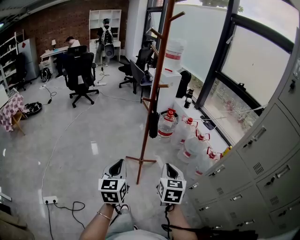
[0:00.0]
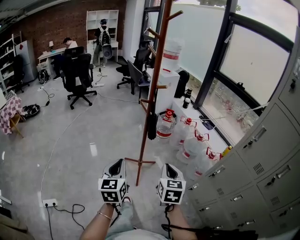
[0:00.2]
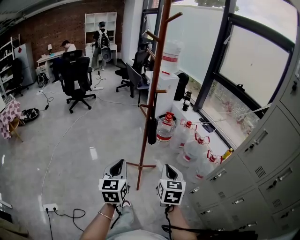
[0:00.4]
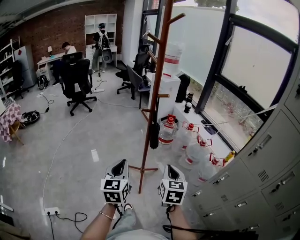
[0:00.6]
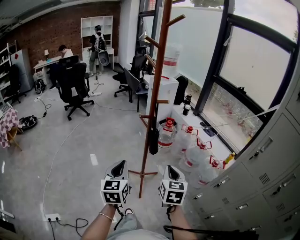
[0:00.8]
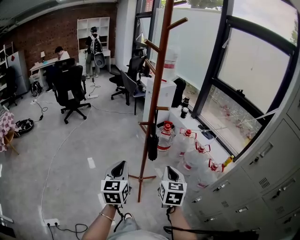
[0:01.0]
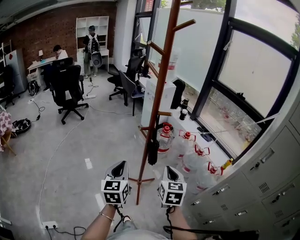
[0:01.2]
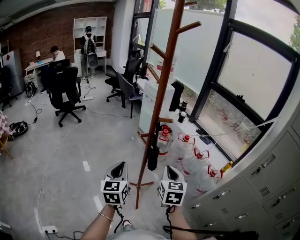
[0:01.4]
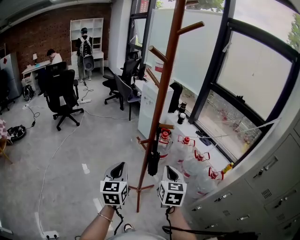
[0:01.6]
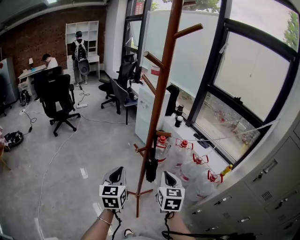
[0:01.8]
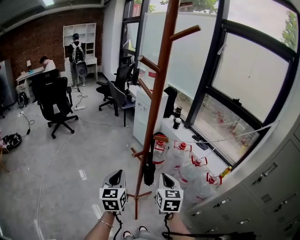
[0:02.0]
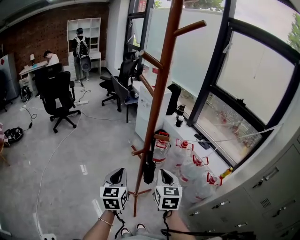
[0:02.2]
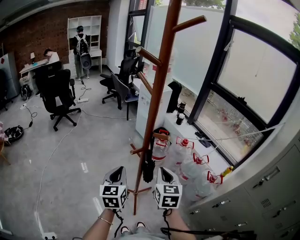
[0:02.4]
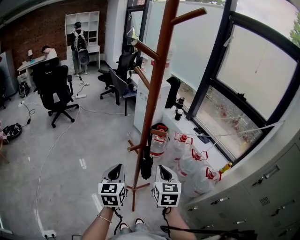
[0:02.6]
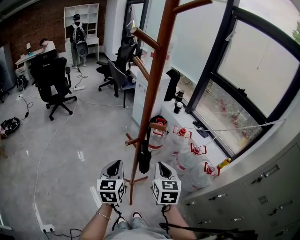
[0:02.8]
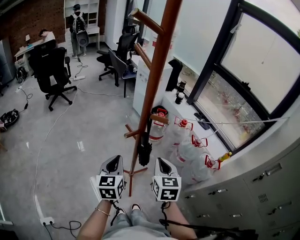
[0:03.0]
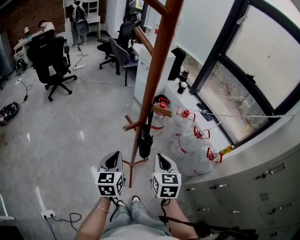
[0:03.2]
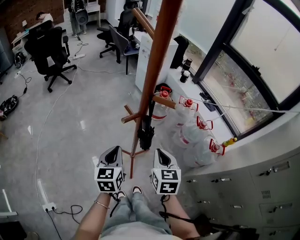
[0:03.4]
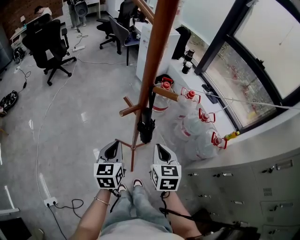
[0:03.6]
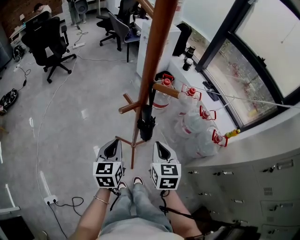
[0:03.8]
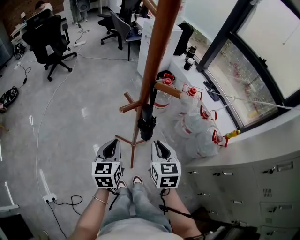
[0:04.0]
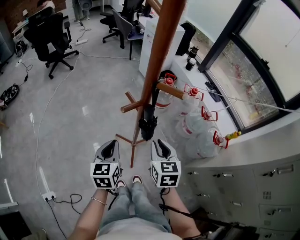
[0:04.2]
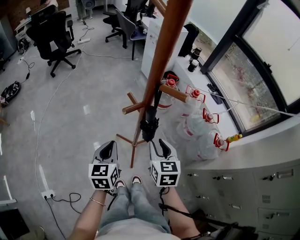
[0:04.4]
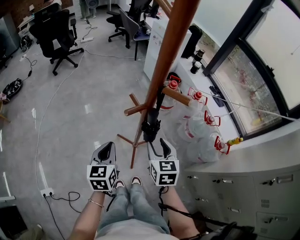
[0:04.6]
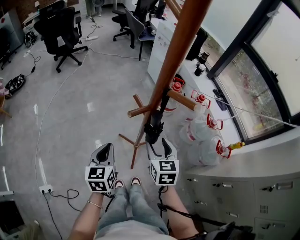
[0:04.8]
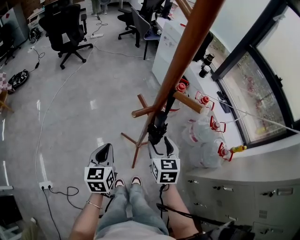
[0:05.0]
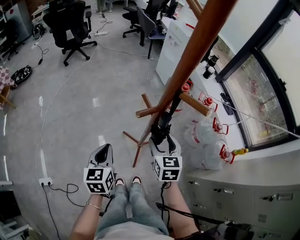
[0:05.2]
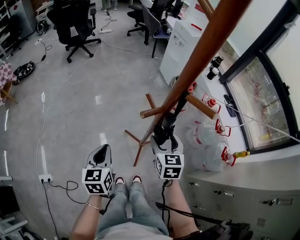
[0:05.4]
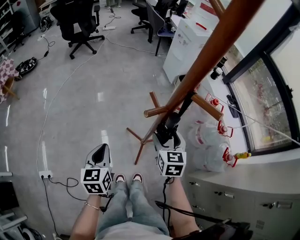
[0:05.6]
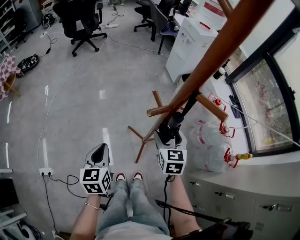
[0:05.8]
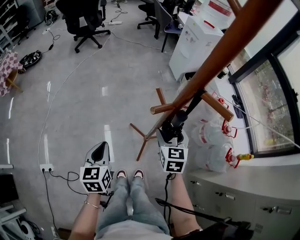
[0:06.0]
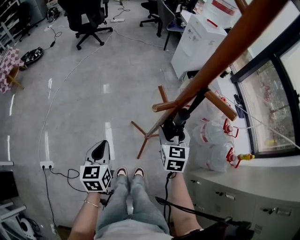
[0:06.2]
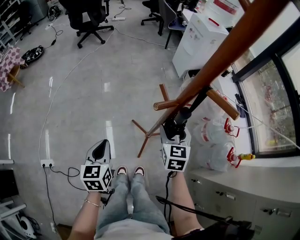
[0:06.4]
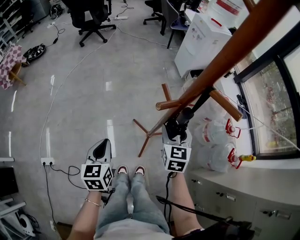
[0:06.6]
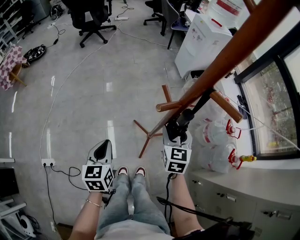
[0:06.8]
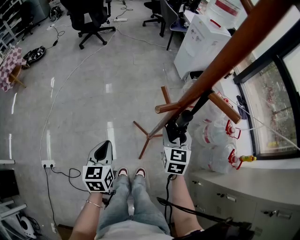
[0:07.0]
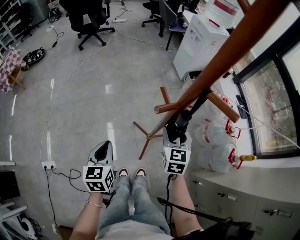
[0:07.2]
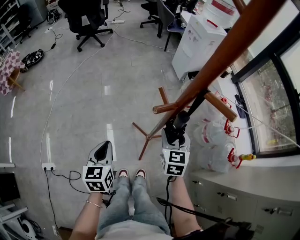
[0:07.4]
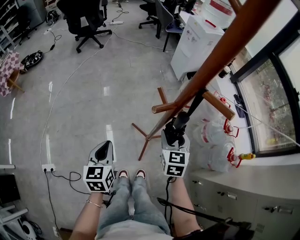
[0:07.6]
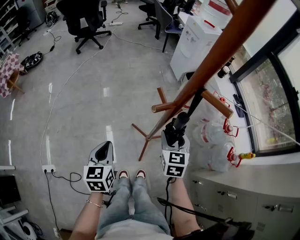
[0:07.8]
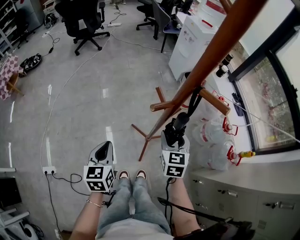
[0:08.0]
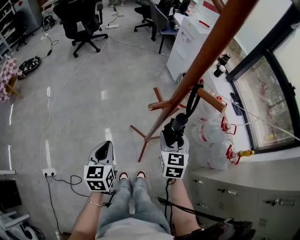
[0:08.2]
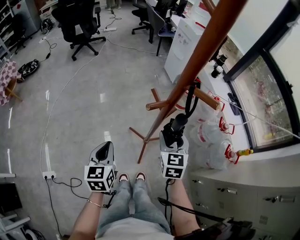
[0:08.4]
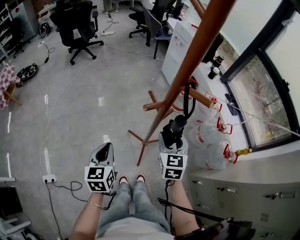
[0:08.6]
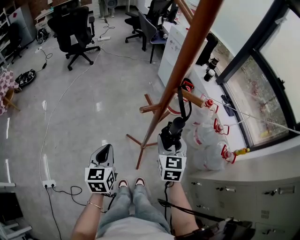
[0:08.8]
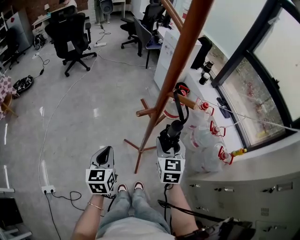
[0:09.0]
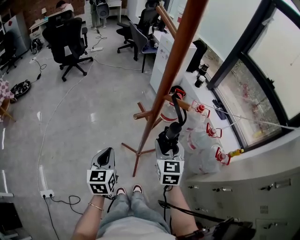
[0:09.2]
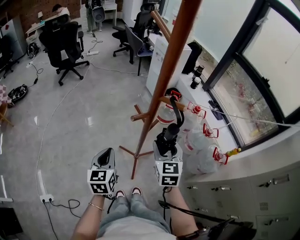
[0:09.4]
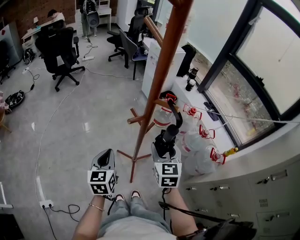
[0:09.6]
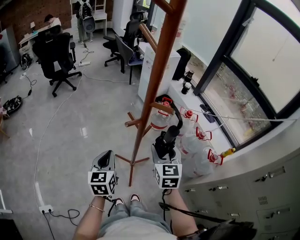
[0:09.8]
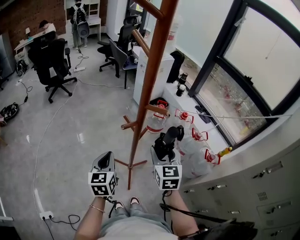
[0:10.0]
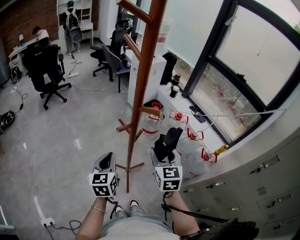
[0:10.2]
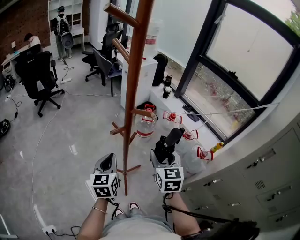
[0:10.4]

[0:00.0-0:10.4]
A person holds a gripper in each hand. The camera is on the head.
0:00.0 to 0:01.4: The two grippers go approximately 25 cm forward.
0:01.4 to 0:03.0: The left gripper goes some 10 cm forward and downward. Meanwhile the right gripper is displaced forward by approximately 10 cm.
0:03.0 to 0:04.4: The two grippers go approximately 10 cm downward.
0:04.4 to 0:06.0: The left gripper travels to the left by approximately 10 cm, while the right gripper is displaced forward and downward by approximately 10 cm, and opens its fingers.
0:06.0 to 0:07.4: Both grippers stay about where they are.
0:07.4 to 0:09.0: The grippers both shift upward by some 5 cm.
0:09.0 to 0:10.4: The right gripper travels upward and to the right by about 10 cm. The left gripper is displaced to the right and upward by some 10 cm.

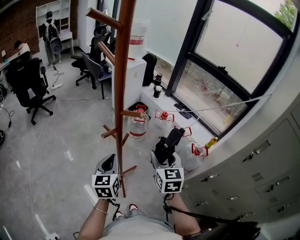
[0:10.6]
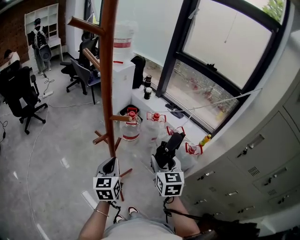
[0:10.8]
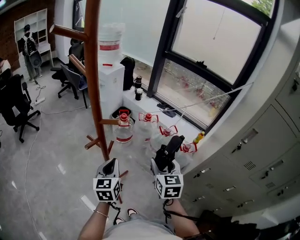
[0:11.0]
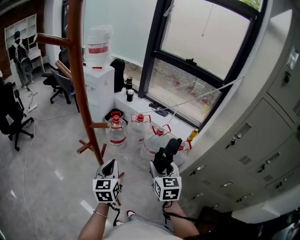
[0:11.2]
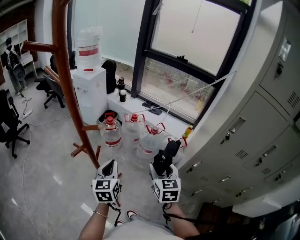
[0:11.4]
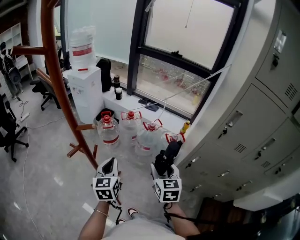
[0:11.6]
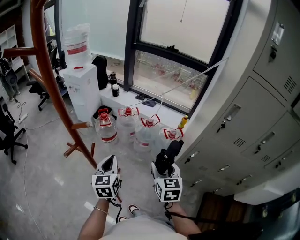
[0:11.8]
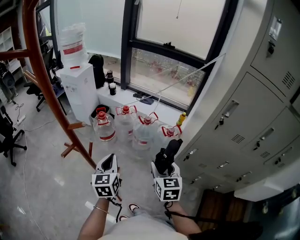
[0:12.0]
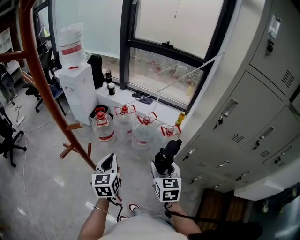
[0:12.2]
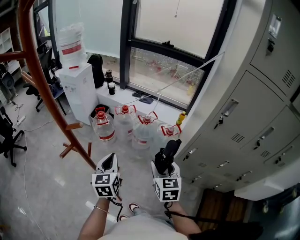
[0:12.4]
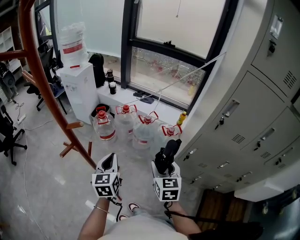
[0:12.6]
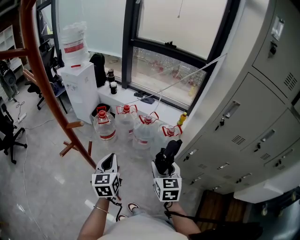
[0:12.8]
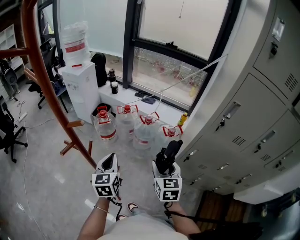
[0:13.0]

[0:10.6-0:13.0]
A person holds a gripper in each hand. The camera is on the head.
0:10.6 to 0:11.8: The two grippers go some 15 cm to the right. The left gripper rotates approximately 20 degrees. Meanwhile the right gripper changes its angle by about 30 degrees.
0:11.8 to 0:13.0: The grippers make only small movements.

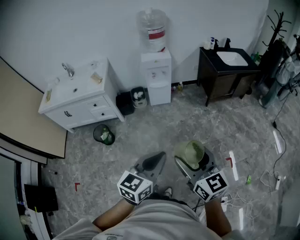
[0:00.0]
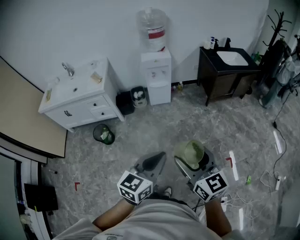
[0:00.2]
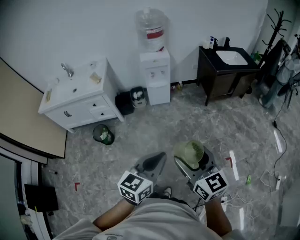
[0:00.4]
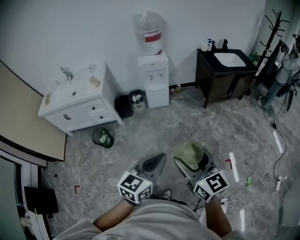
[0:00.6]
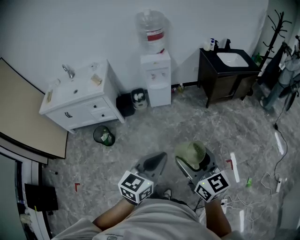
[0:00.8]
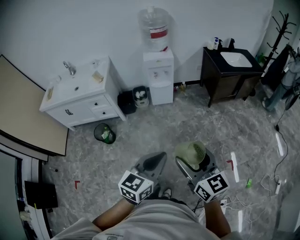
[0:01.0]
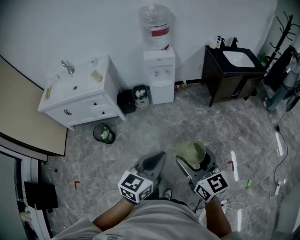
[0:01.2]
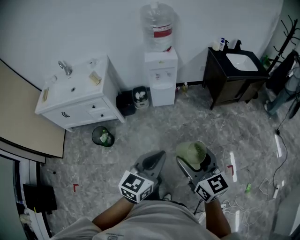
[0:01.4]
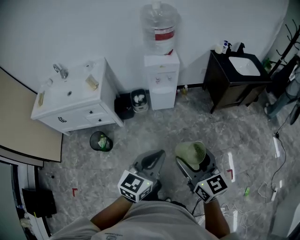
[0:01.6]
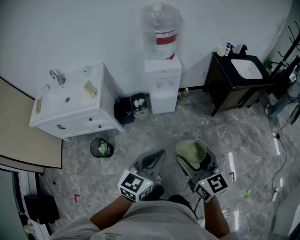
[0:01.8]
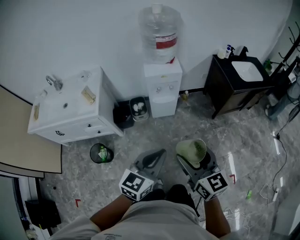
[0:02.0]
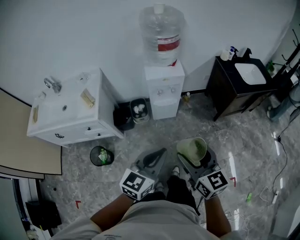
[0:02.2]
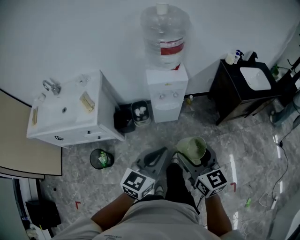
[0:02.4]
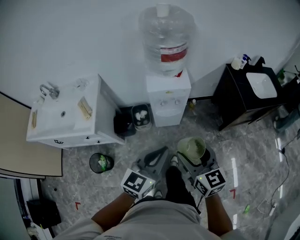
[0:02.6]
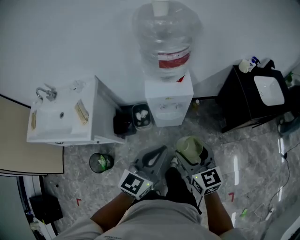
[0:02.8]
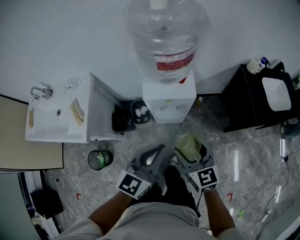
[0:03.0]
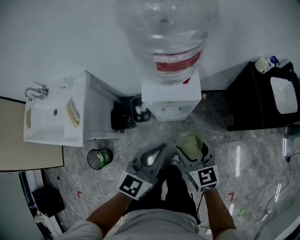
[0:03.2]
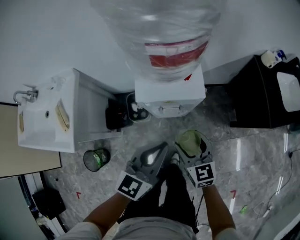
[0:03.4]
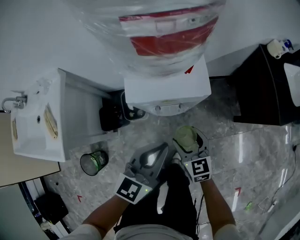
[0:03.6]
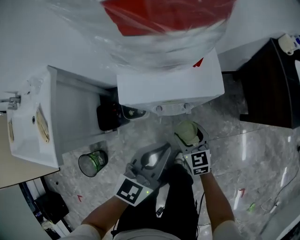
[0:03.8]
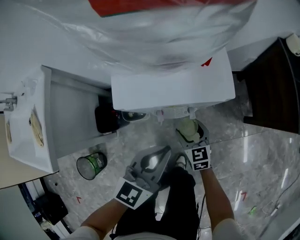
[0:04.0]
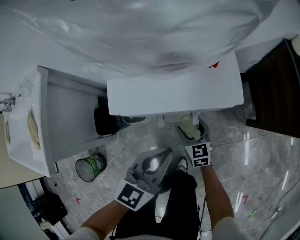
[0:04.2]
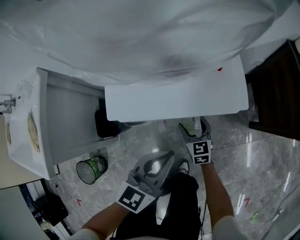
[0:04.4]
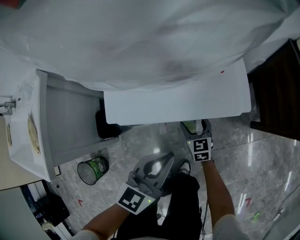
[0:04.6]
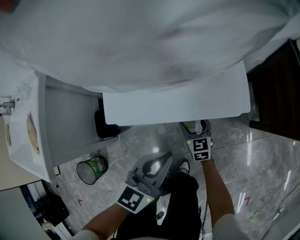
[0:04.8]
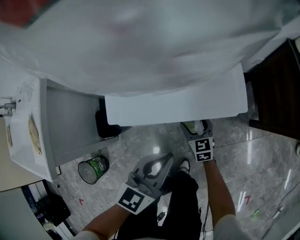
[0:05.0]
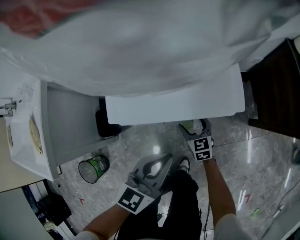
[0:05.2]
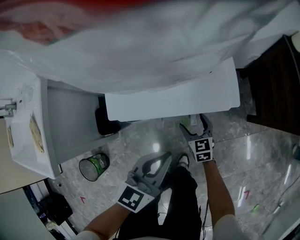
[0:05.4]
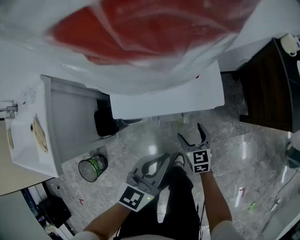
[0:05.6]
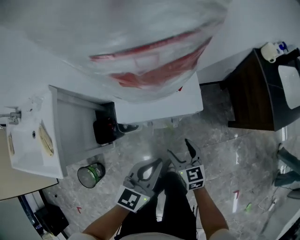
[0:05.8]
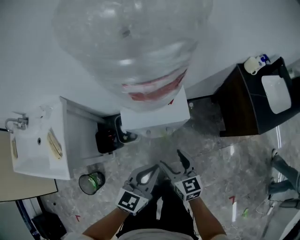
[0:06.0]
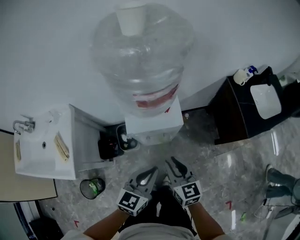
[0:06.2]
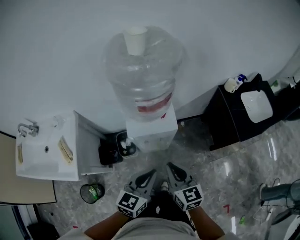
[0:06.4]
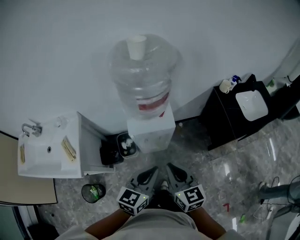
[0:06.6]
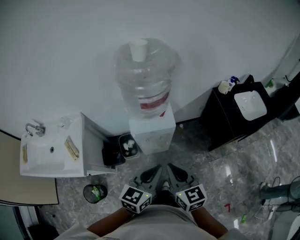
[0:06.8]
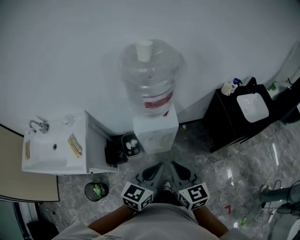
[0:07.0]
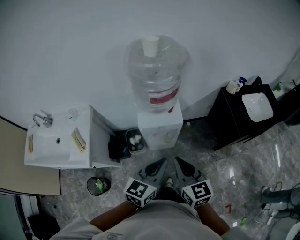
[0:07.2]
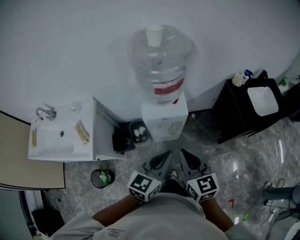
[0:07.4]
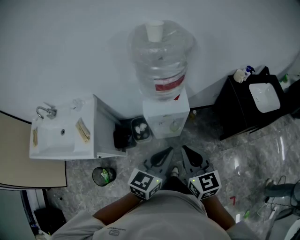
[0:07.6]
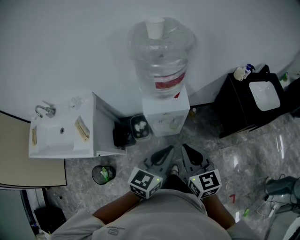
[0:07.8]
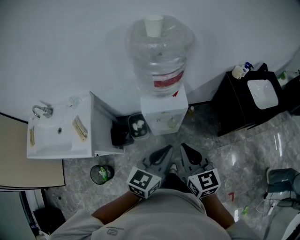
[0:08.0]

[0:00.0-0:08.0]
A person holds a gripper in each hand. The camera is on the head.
0:00.0 to 0:01.6: The two grippers go some 20 cm forward.
0:01.6 to 0:03.2: The two grippers travel together, forward, some 50 cm.
0:03.2 to 0:04.8: The grippers both shift downward by some 40 cm.
0:04.8 to 0:06.4: The right gripper heads upward, covering about 50 cm, and closes up; the left gripper shifts some 30 cm upward.
0:06.4 to 0:08.0: The left gripper travels upward by approximately 10 cm, while the right gripper shifts about 10 cm upward and backward.

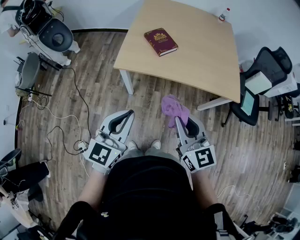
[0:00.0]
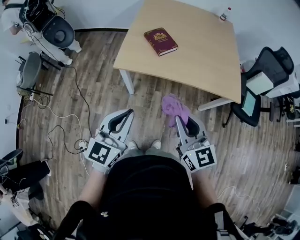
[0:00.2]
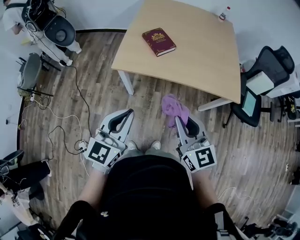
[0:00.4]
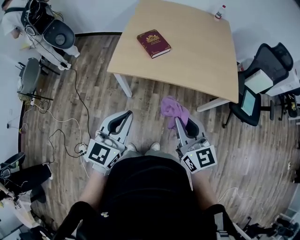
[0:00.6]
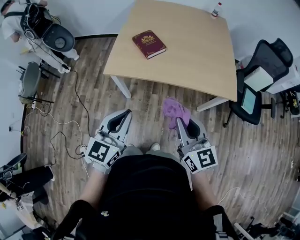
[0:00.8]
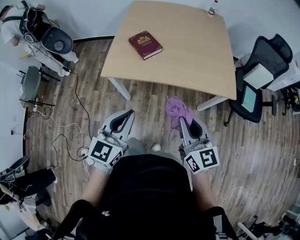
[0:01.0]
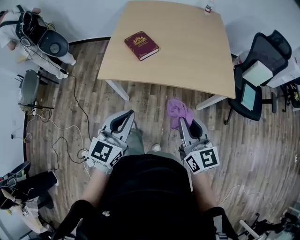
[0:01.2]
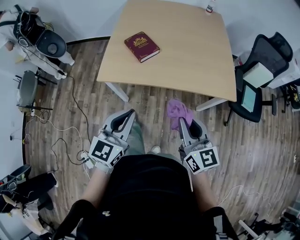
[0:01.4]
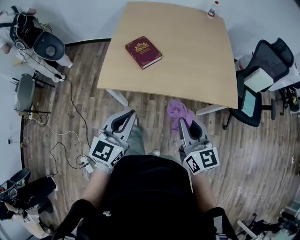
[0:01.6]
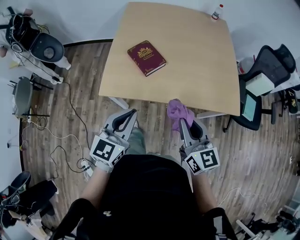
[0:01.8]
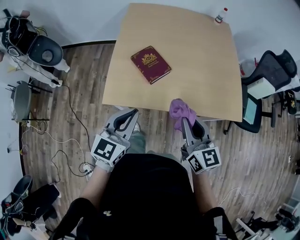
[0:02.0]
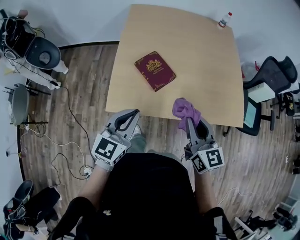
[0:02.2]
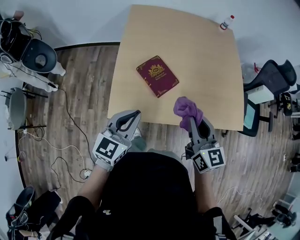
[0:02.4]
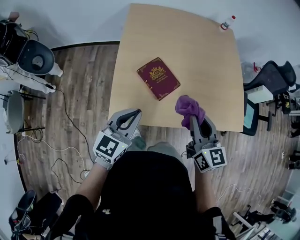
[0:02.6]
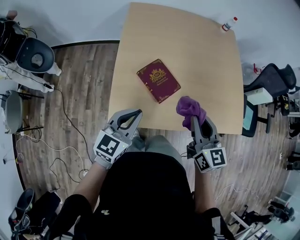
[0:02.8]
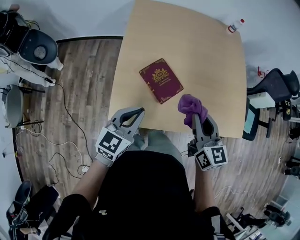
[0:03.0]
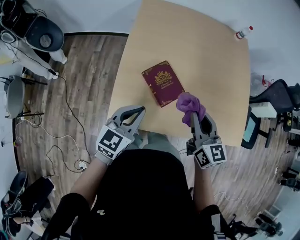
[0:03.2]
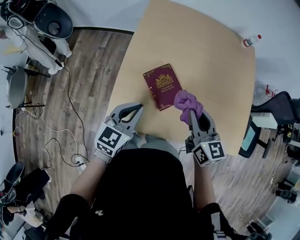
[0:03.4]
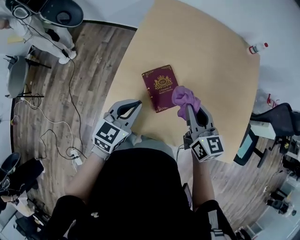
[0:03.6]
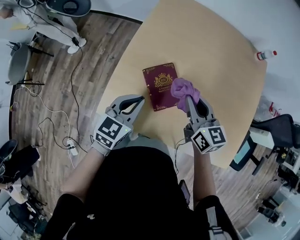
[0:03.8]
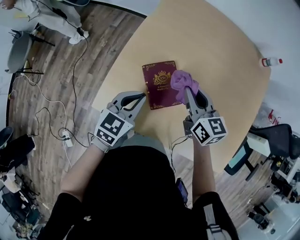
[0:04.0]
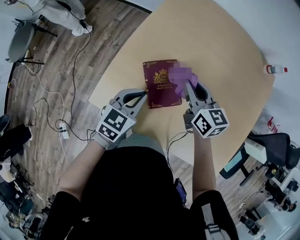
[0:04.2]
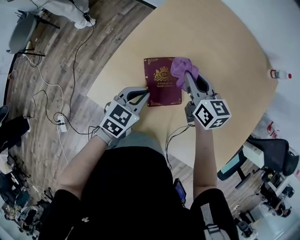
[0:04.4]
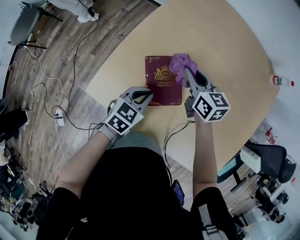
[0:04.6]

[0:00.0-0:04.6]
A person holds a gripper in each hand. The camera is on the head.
0:00.0 to 0:01.6: The right gripper heads to the right and forward, covering some 15 cm. The left gripper shifts about 15 cm forward and to the right.
0:01.6 to 0:03.0: The grippers both shift forward and to the left by approximately 30 cm.
0:03.0 to 0:04.6: The left gripper moves downward, roughly 15 cm, and rotates about 30 degrees, while the right gripper shifts by roughly 30 cm, and turns by about 40 degrees.
